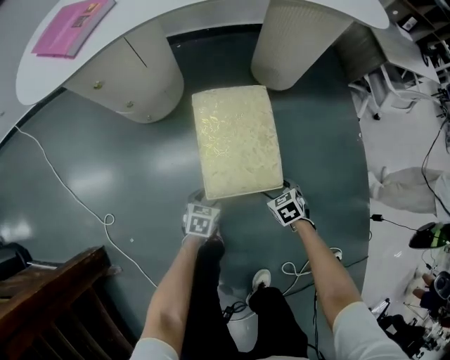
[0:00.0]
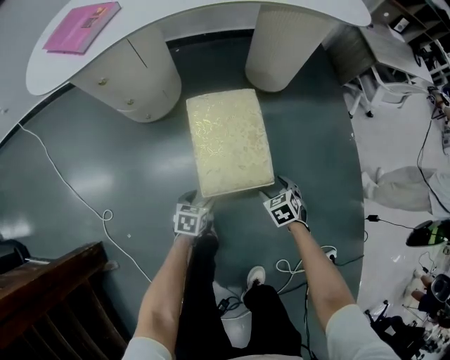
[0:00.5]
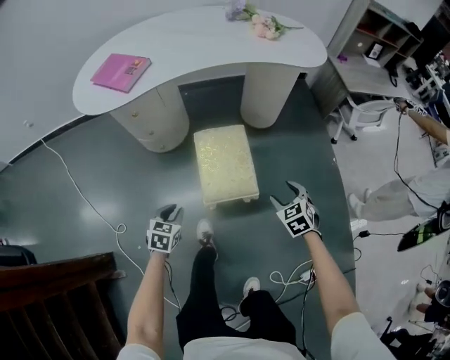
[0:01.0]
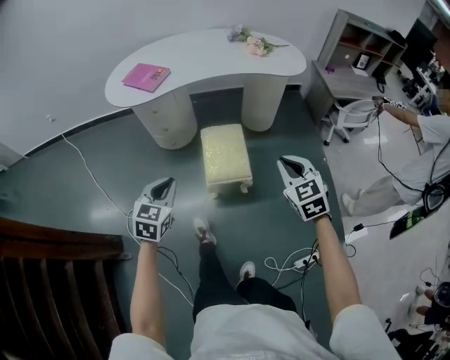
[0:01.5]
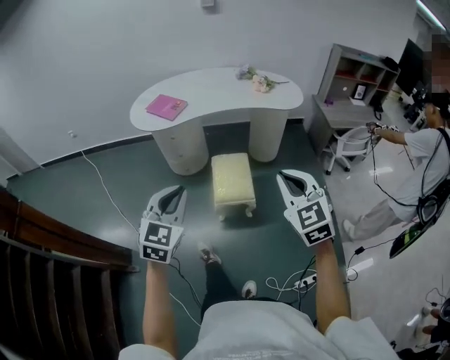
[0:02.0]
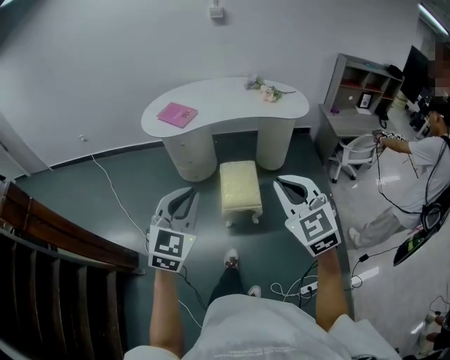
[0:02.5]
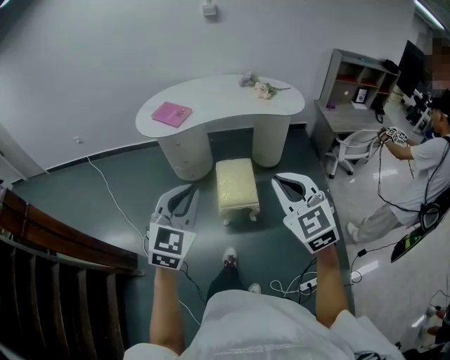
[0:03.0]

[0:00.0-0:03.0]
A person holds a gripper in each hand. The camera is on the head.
0:00.0 to 0:01.5: The grippers both shift upward by about 60 cm. The left gripper rotates some 30 degrees, and closes. Meanwhile the right gripper points its fingers roughly 40 degrees further upward, and closes.
0:01.5 to 0:03.0: The two grippers go approximately 25 cm upward and backward. The left gripper swivels about 20 degrees.

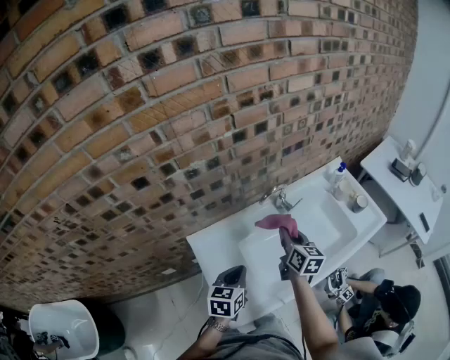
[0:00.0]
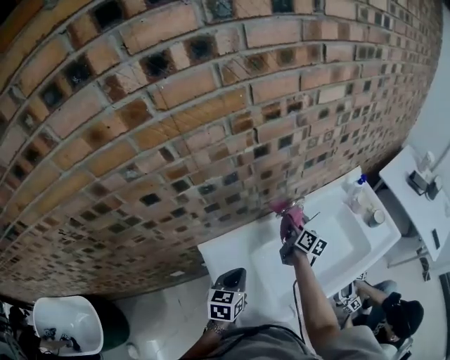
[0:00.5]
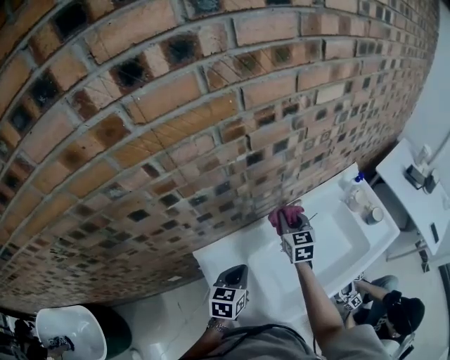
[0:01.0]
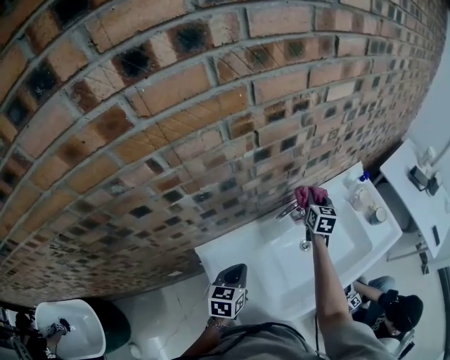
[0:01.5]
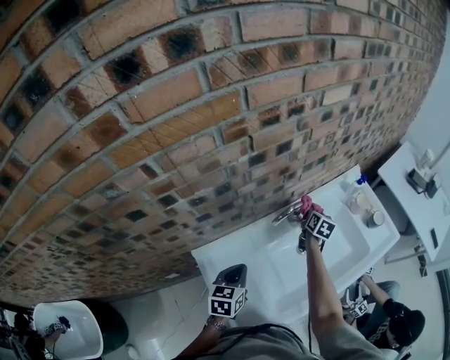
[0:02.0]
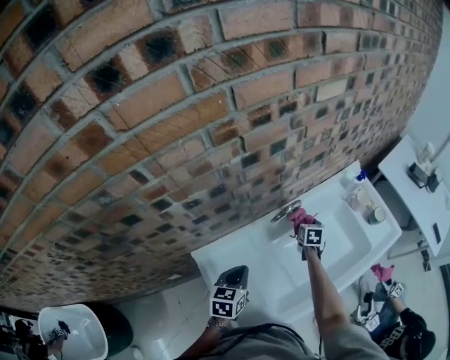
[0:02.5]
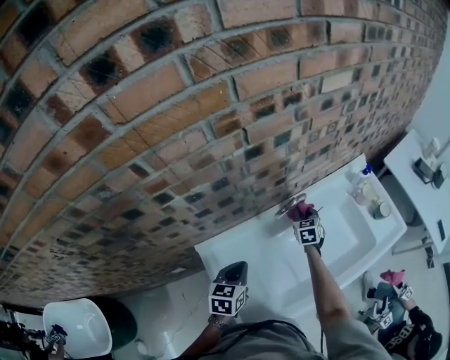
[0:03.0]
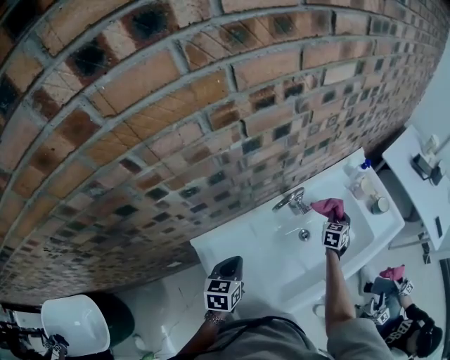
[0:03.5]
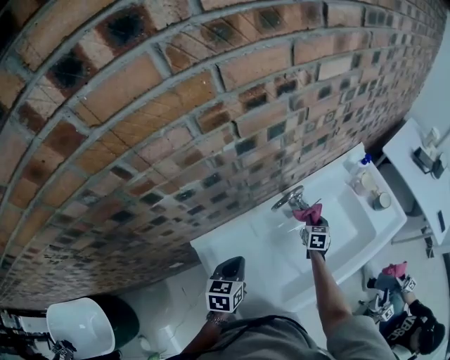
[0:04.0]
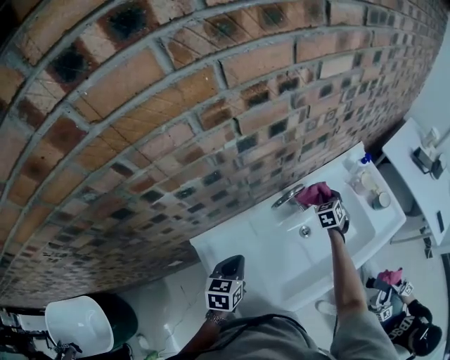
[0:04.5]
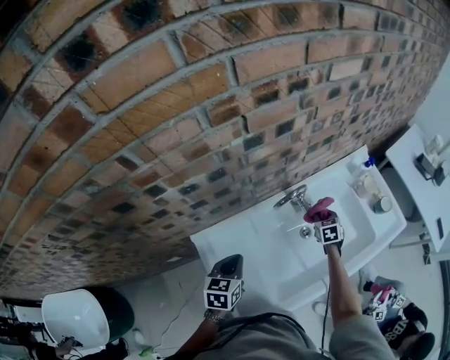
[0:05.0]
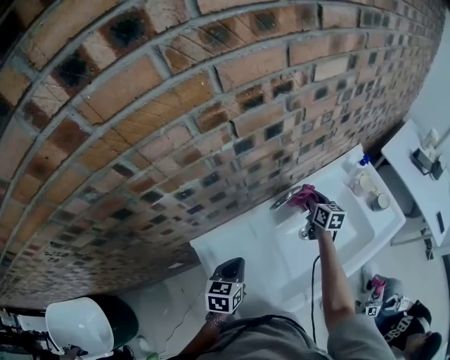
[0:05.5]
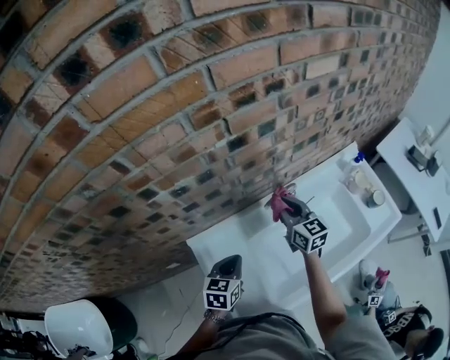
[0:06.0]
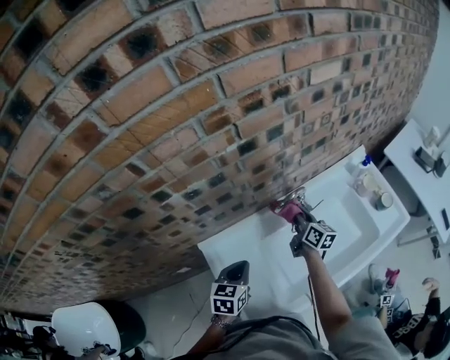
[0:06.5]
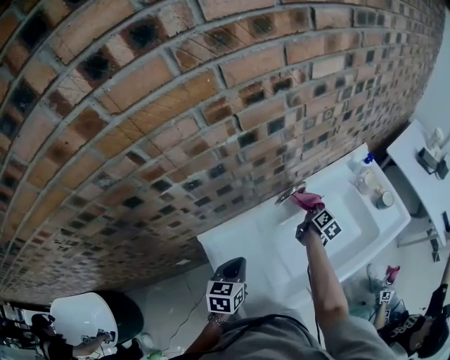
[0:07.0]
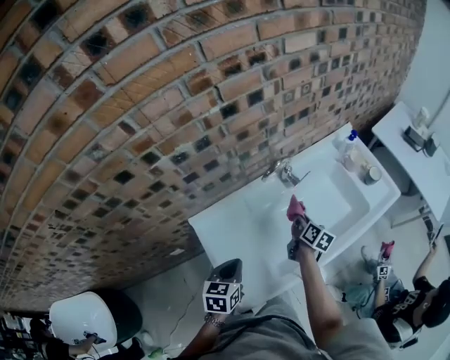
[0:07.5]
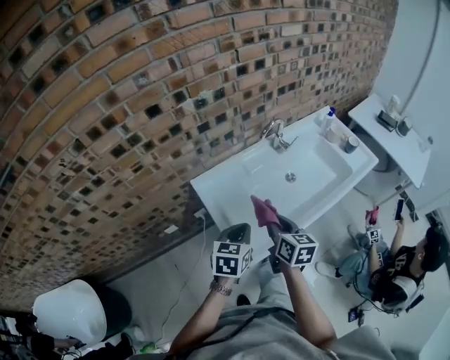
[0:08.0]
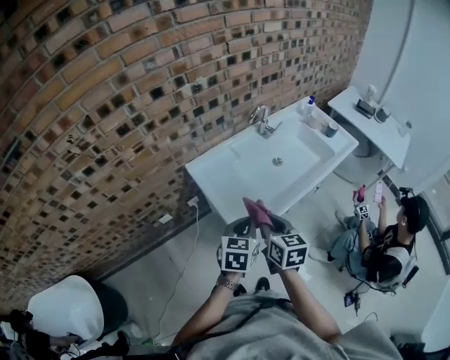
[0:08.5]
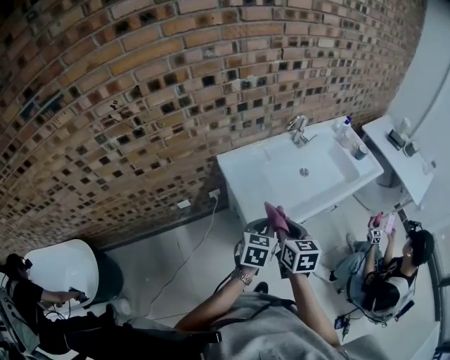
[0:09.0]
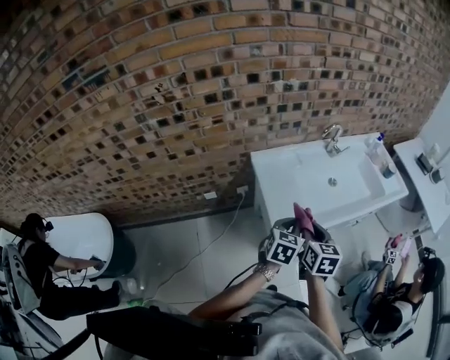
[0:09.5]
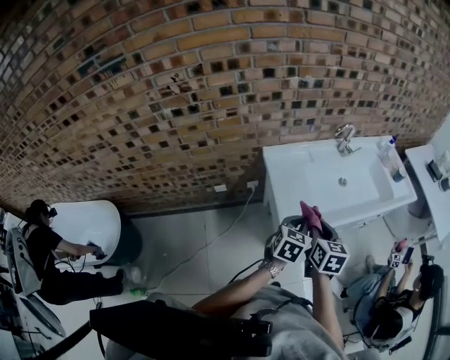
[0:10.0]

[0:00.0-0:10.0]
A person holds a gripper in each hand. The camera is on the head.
0:00.0 to 0:02.0: The right gripper is displaced forward and downward by some 25 cm, and changes its angle by about 20 degrees, while the left gripper shifts roughly 10 cm forward.
0:02.0 to 0:04.0: The right gripper swings left and right, roughly 20 cm each way, with 2 reversals, and swivels about 30 degrees.
0:04.0 to 0:06.0: The right gripper goes up and down, approximately 20 cm each way, reversing 2 times, and tilts its fingers about 30 degrees upward.
0:06.0 to 0:08.0: The left gripper heads backward, covering approximately 20 cm. The right gripper is displaced backward by approximately 35 cm, and turns by some 30 degrees.
0:08.0 to 0:10.0: Both grippers move backward, some 15 cm.

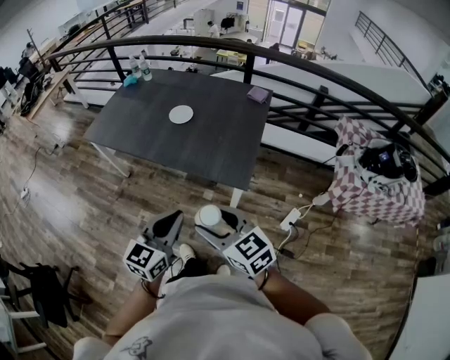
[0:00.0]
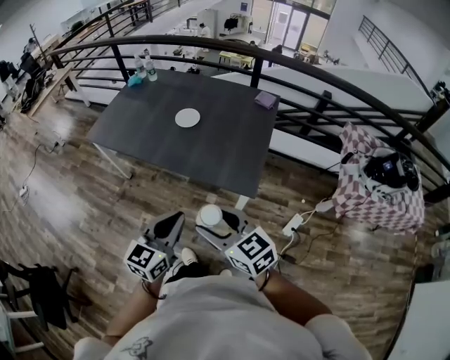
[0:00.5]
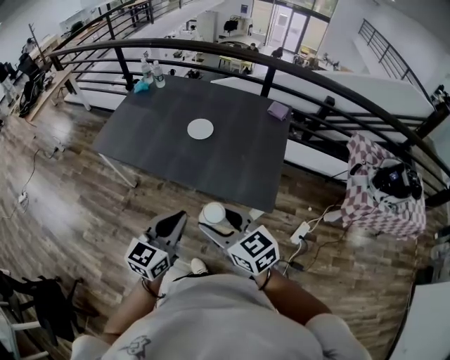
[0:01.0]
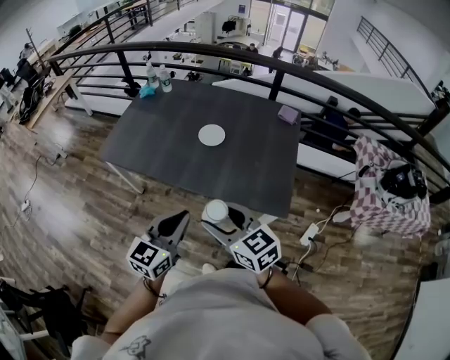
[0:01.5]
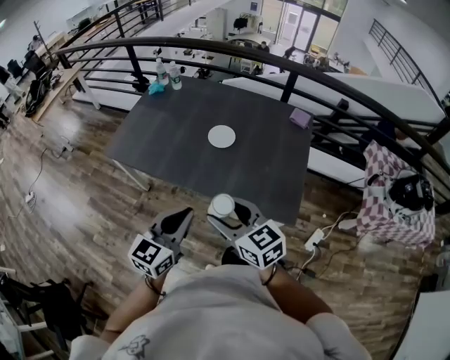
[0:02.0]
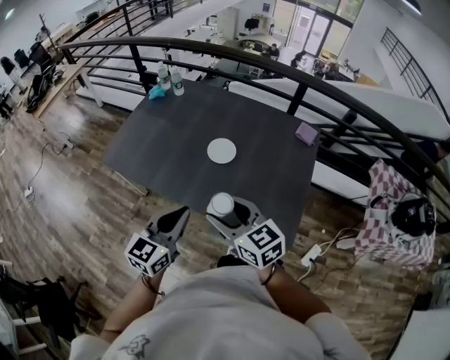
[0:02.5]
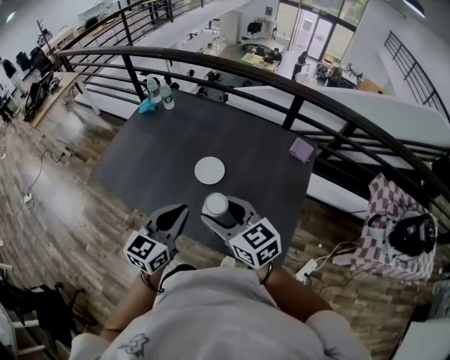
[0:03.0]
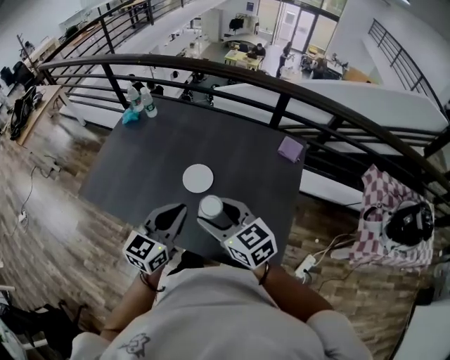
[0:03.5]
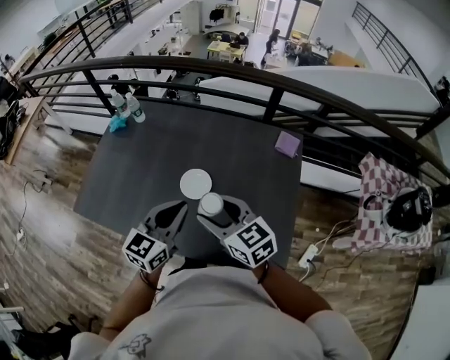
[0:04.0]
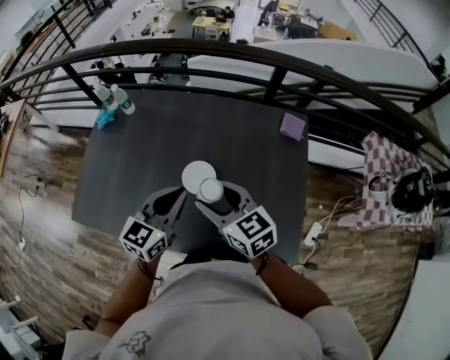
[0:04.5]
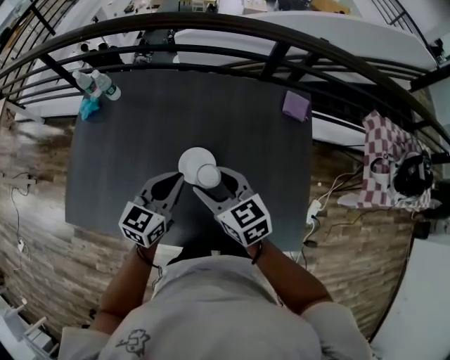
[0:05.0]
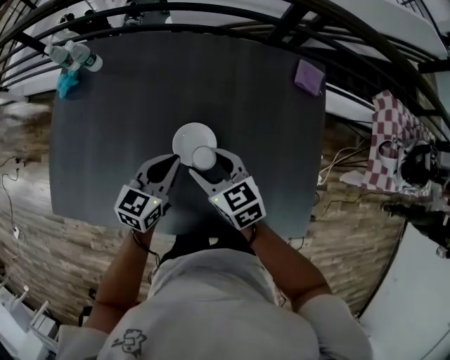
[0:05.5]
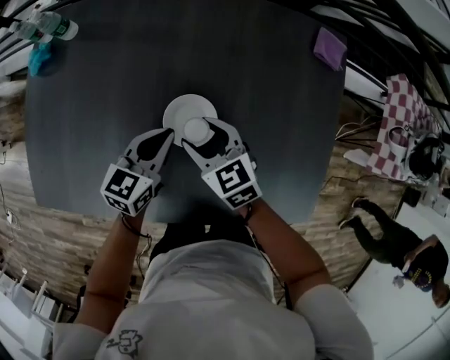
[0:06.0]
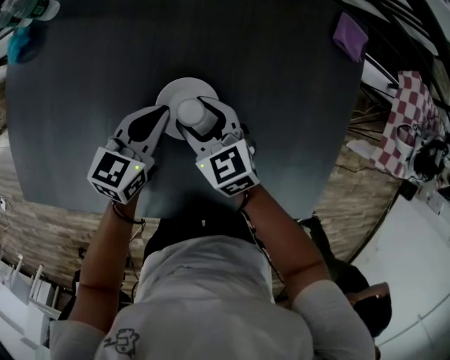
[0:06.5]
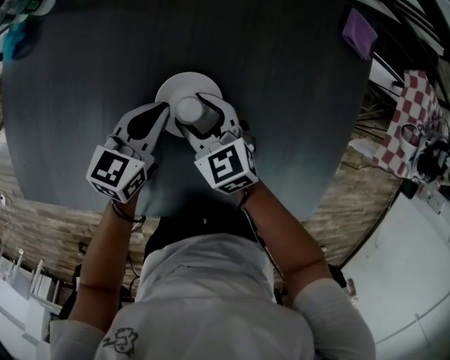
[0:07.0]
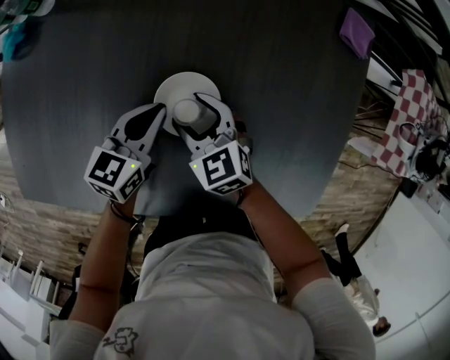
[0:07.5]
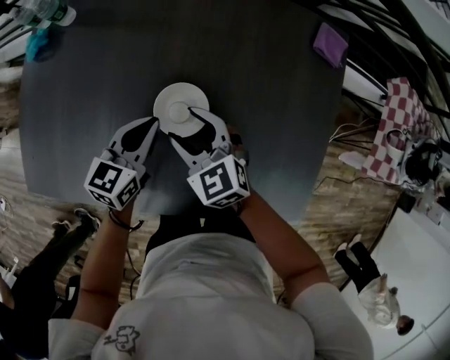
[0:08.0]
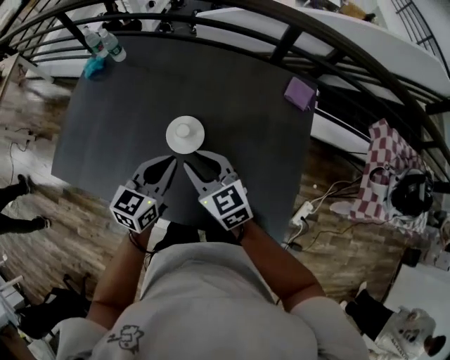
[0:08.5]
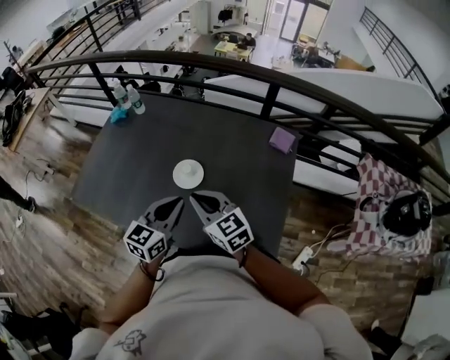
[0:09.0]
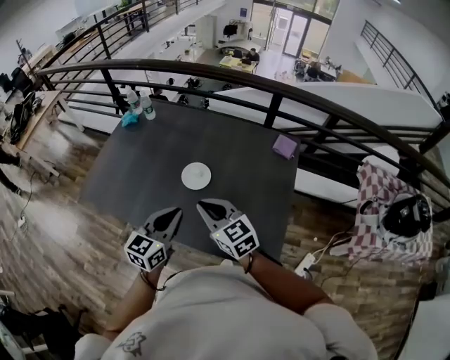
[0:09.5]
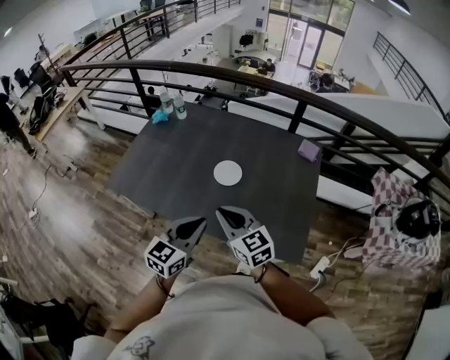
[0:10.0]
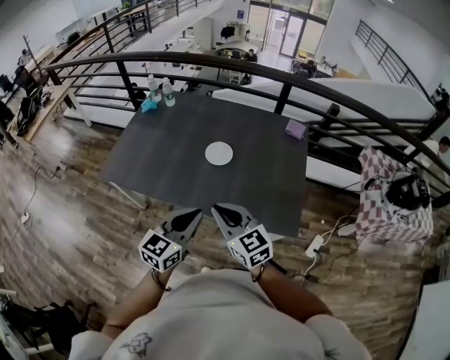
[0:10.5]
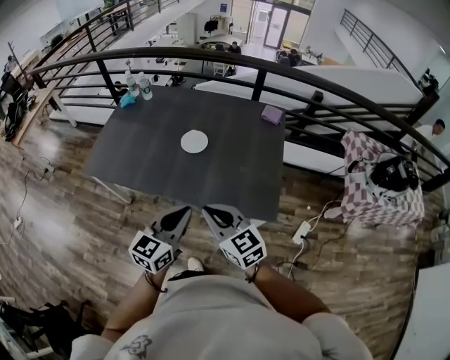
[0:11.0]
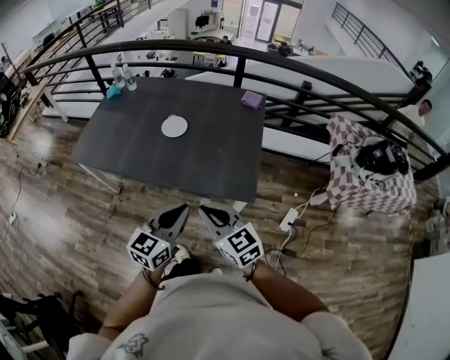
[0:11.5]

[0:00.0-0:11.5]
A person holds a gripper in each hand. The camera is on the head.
0:00.0 to 0:02.0: The two grippers go about 30 cm forward and to the left.
0:02.0 to 0:04.0: Both grippers travel together forward, about 35 cm.
0:04.0 to 0:06.0: Both grippers move downward and forward, about 35 cm. The left gripper rotates approximately 20 degrees, while the right gripper rotates approximately 20 degrees.
0:06.0 to 0:07.5: The grippers both shift downward by about 5 cm.
0:07.5 to 0:09.5: Both grippers move upward and backward, approximately 50 cm. The left gripper swivels about 30 degrees; the right gripper rotates some 30 degrees, and closes its fingers.
0:09.5 to 0:11.5: Both grippers travel together backward, roughly 30 cm.

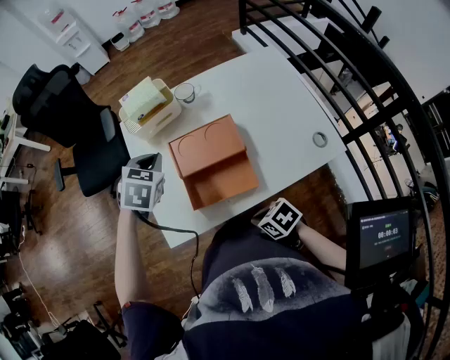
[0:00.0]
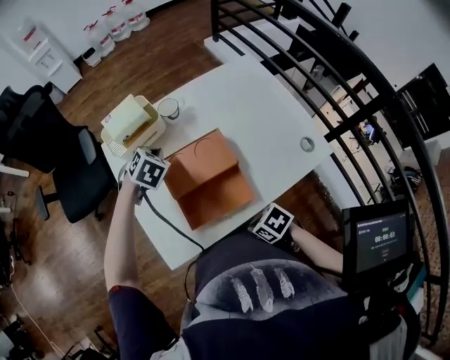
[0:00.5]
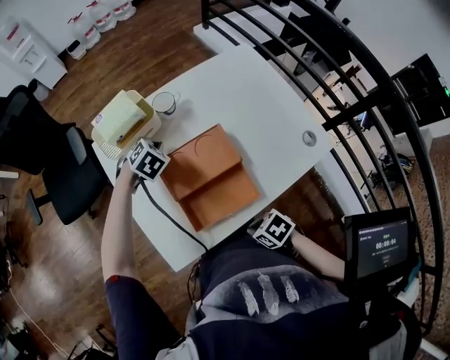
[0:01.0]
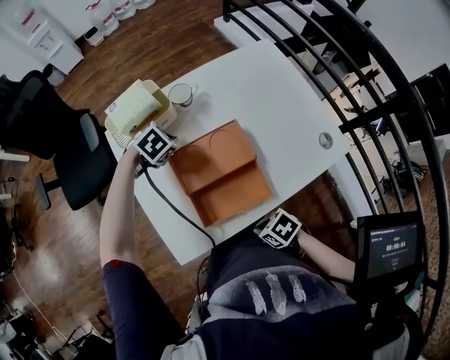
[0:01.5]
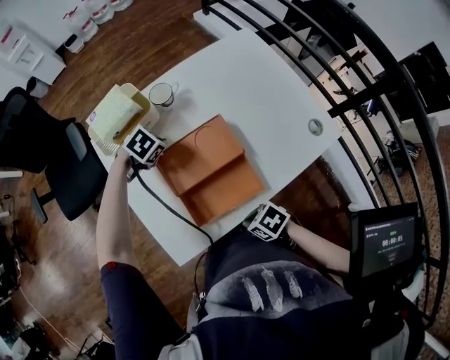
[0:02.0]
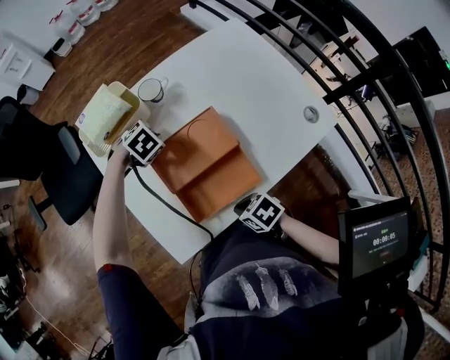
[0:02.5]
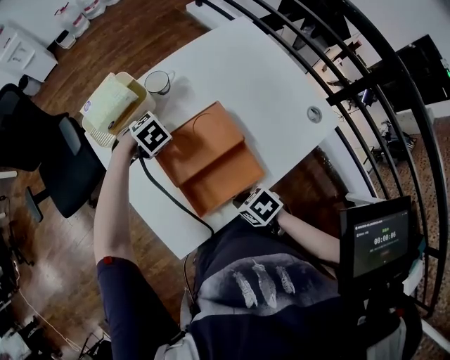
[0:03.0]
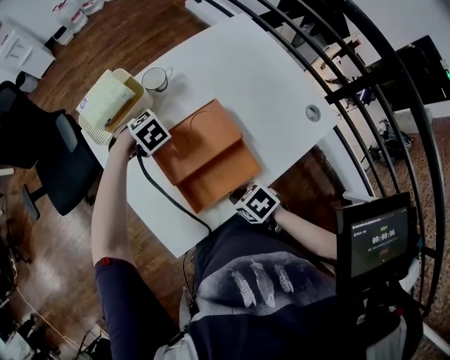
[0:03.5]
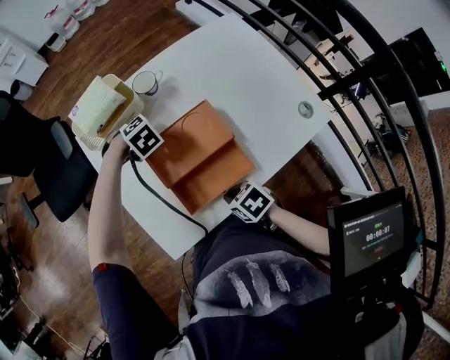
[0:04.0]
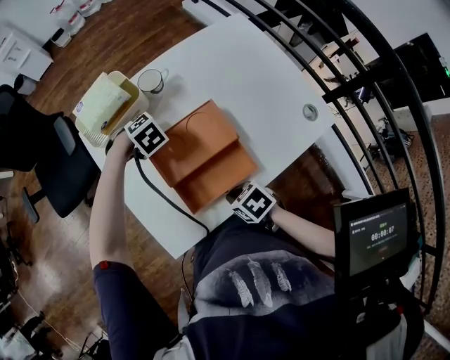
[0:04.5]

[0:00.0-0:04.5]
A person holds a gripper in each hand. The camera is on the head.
0:00.0 to 0:02.0: The right gripper shifts by approximately 5 cm.
0:02.0 to 0:04.5: The right gripper changes place by approximately 5 cm.
